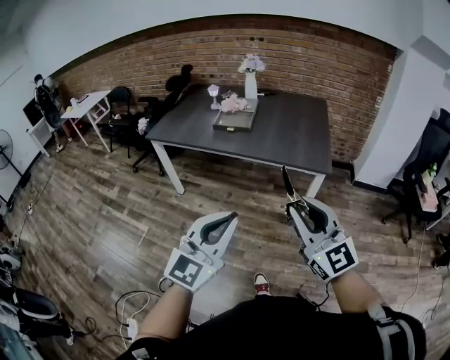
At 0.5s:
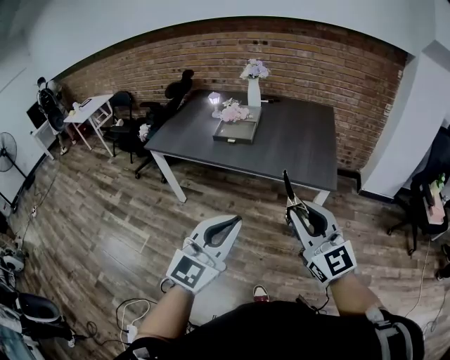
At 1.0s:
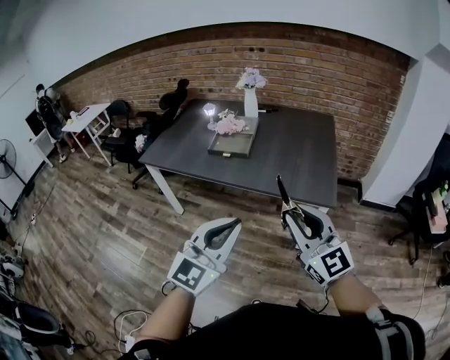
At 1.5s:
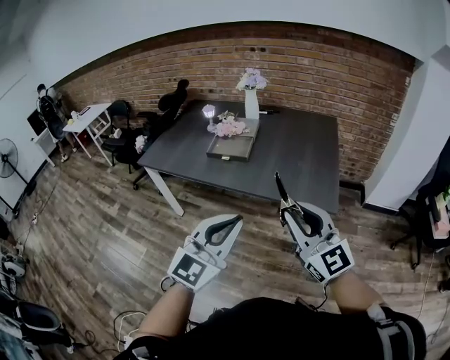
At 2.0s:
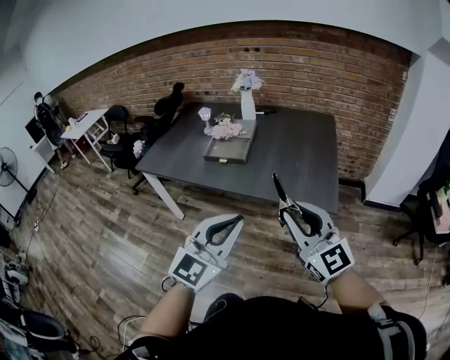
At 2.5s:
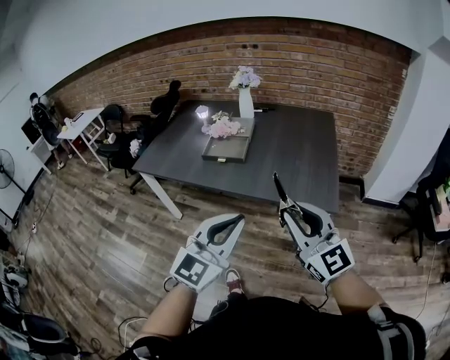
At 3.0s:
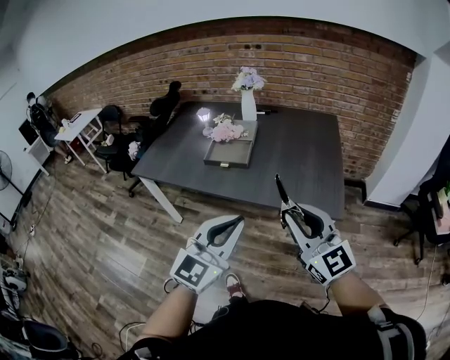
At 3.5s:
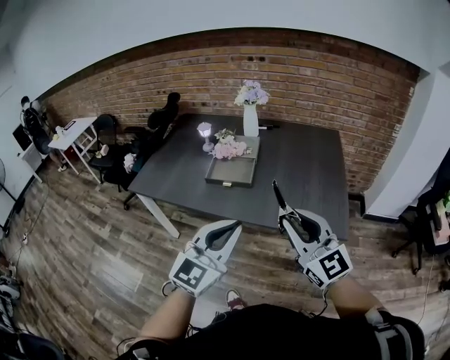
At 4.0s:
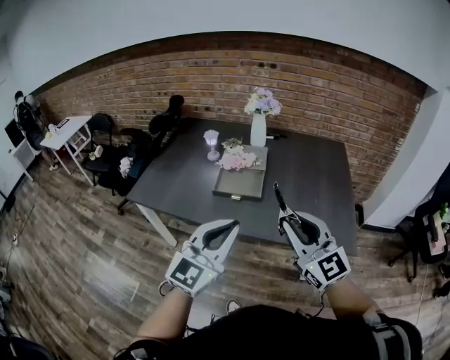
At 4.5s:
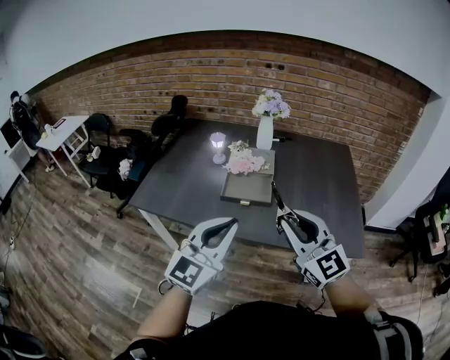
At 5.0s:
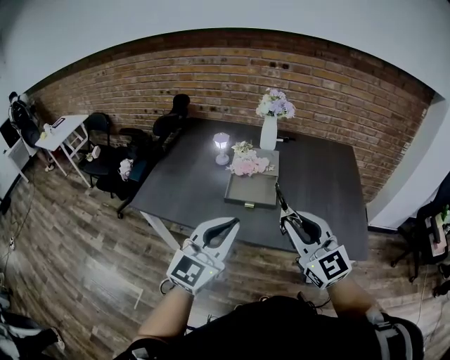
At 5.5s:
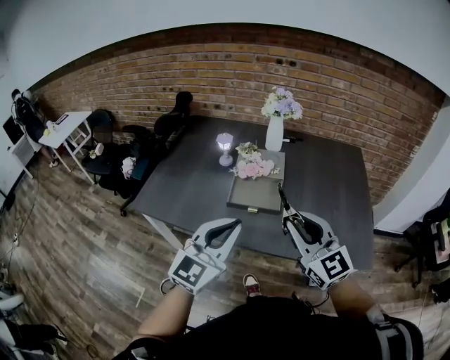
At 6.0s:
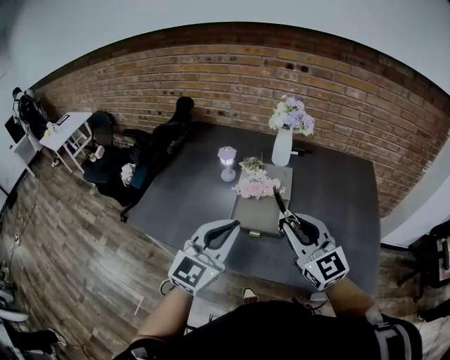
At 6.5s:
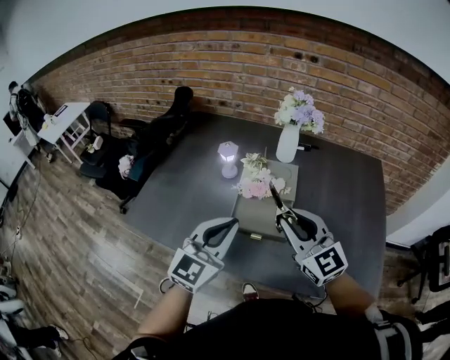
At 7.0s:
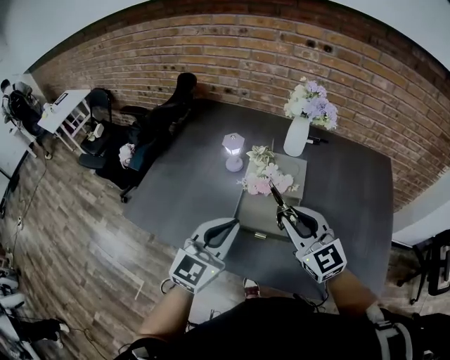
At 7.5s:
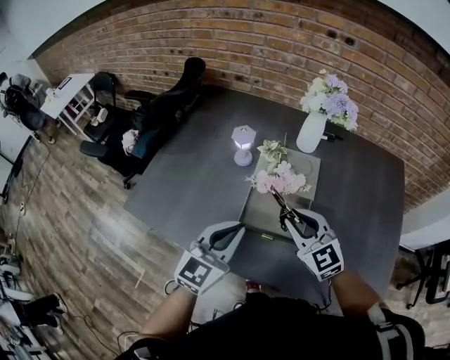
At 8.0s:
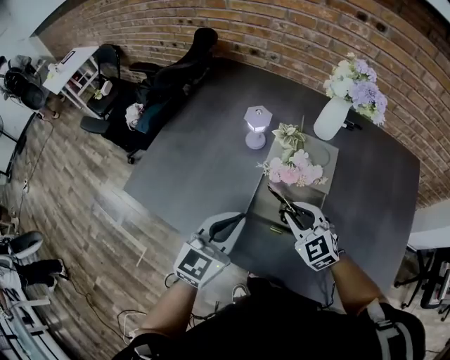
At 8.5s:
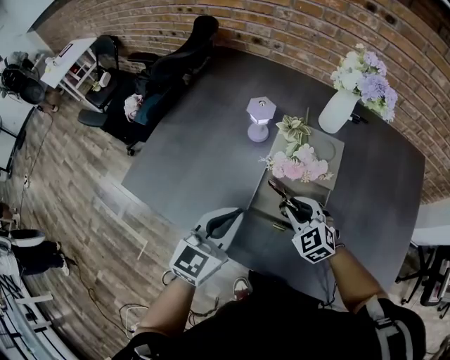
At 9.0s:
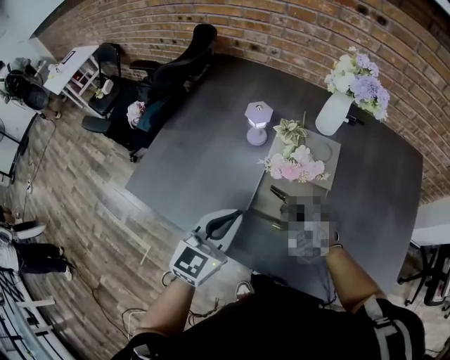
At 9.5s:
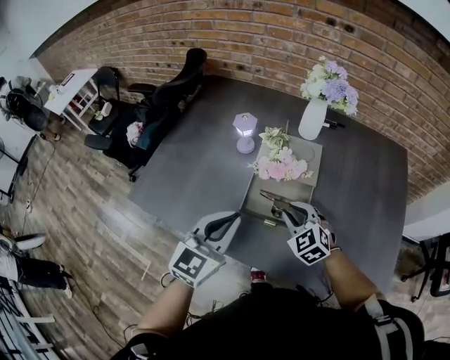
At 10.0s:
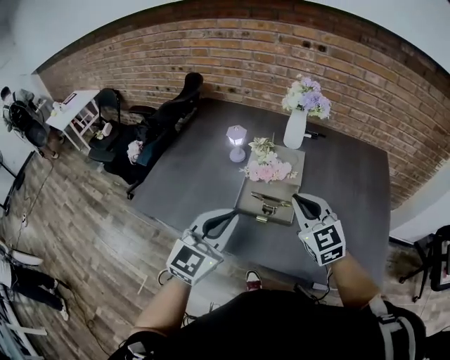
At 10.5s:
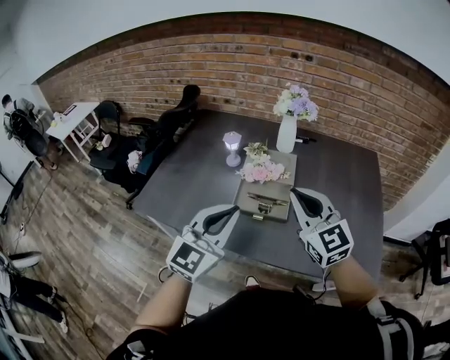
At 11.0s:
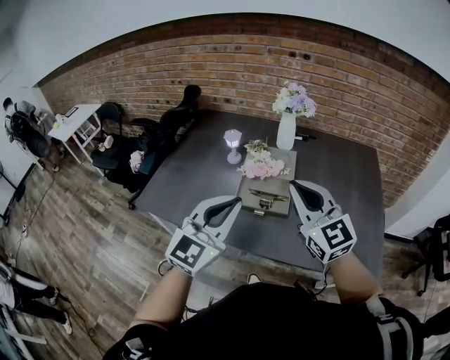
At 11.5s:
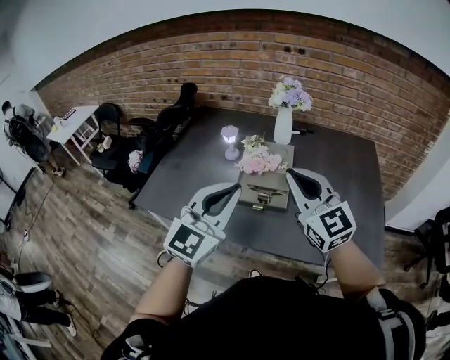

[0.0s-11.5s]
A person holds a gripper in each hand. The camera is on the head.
0.0s to 2.0s: The two grippers go roughly 25 cm forward.
2.0s to 4.0s: The two grippers go roughly 25 cm forward and to the left.
4.0s to 6.0s: Both grippers move forward, some 20 cm.
6.0s to 7.5s: Both grippers travel together downward and forward, approximately 15 cm.
7.5s to 9.5s: The right gripper travels downward by about 10 cm, and turns by roughly 20 degrees.
9.5s to 11.5s: The right gripper travels upward and backward by approximately 30 cm, and tips its fingers upward by about 40 degrees, while the left gripper shifts about 20 cm upward and backward, and rotates approximately 20 degrees.

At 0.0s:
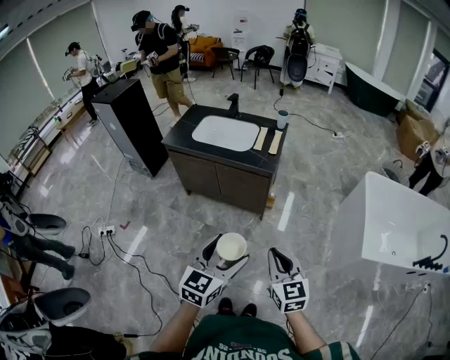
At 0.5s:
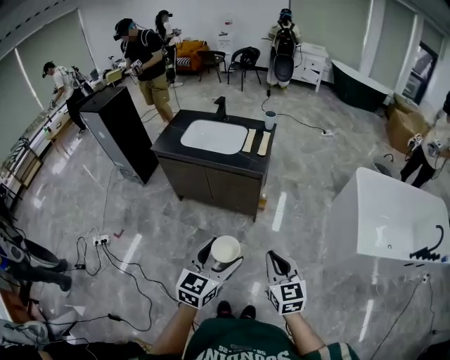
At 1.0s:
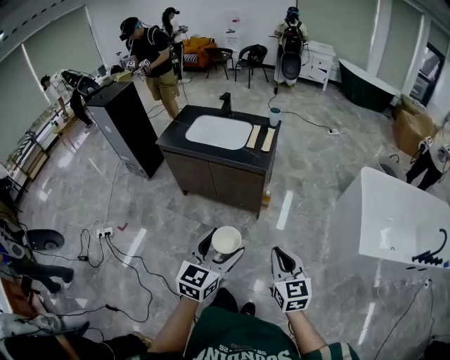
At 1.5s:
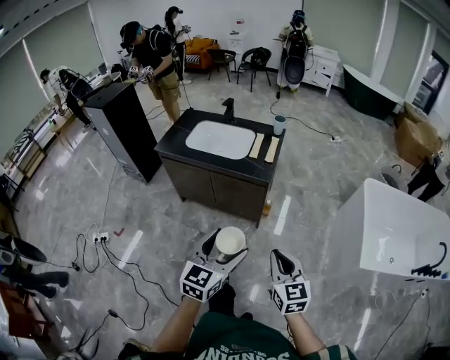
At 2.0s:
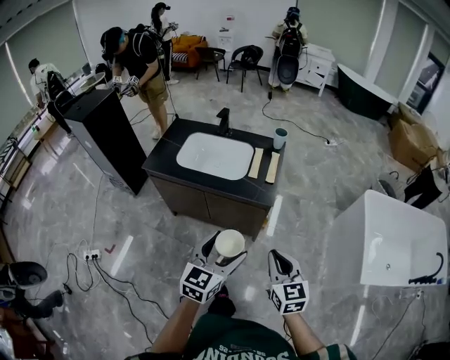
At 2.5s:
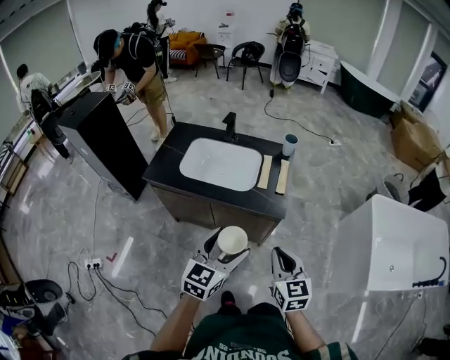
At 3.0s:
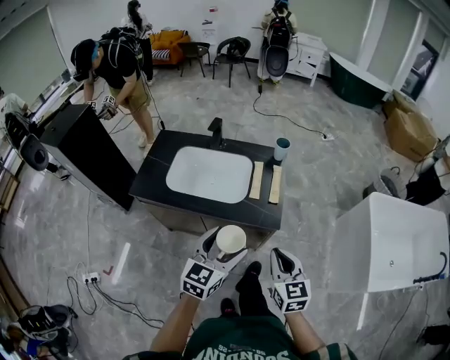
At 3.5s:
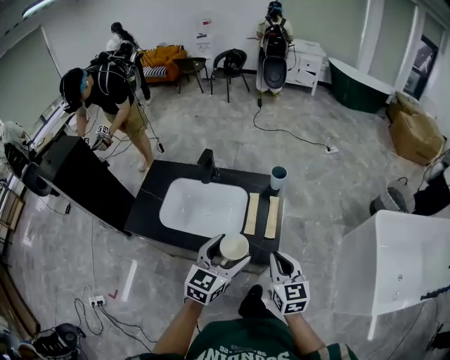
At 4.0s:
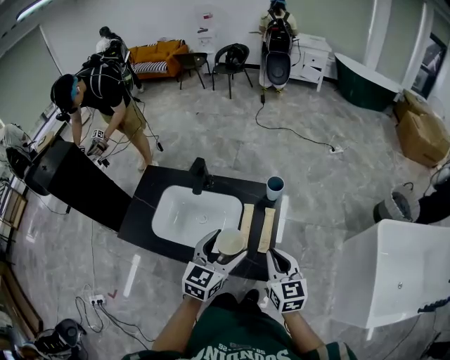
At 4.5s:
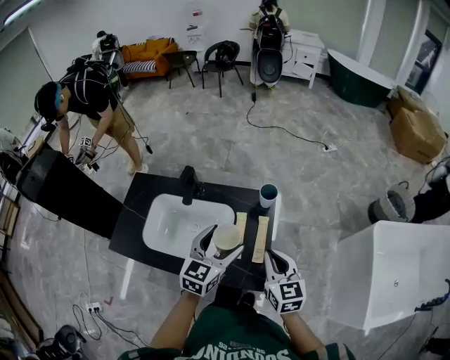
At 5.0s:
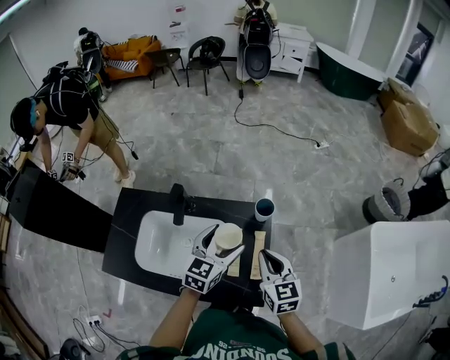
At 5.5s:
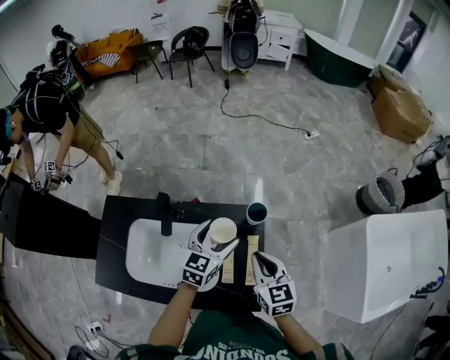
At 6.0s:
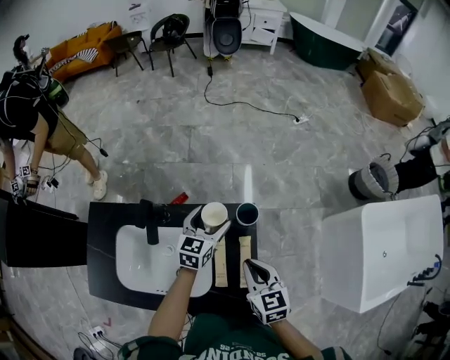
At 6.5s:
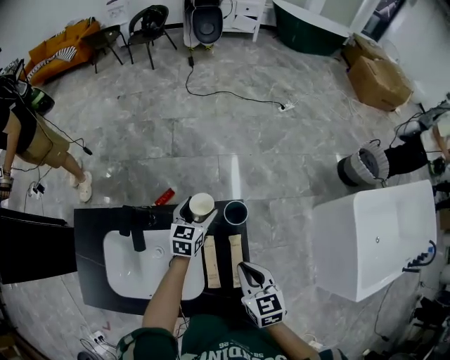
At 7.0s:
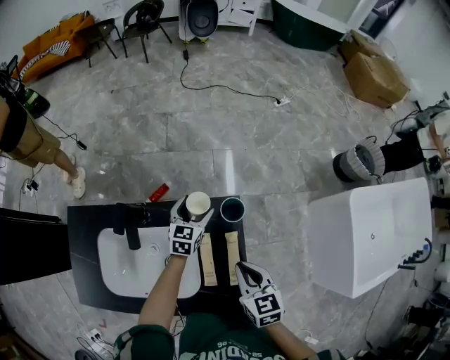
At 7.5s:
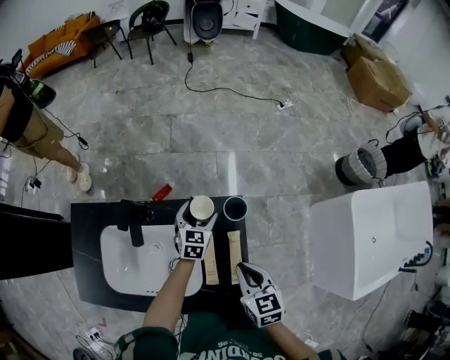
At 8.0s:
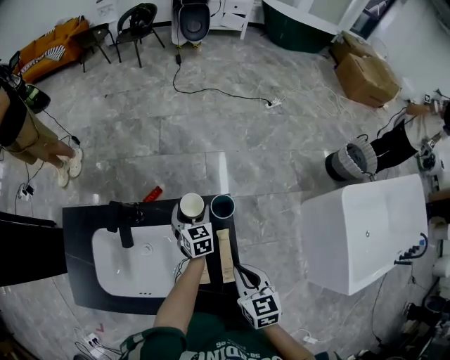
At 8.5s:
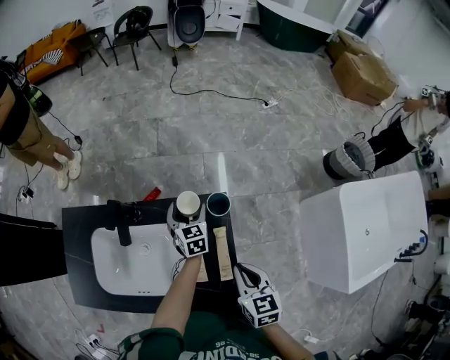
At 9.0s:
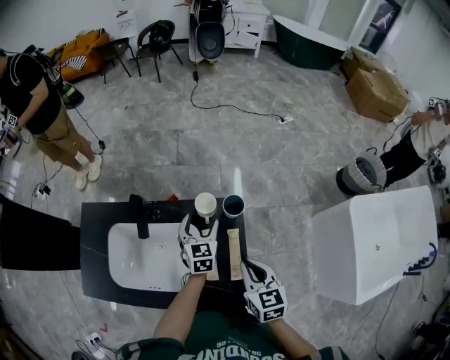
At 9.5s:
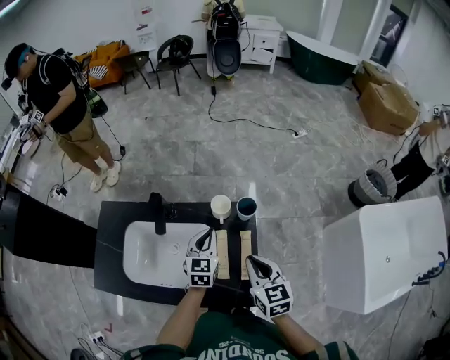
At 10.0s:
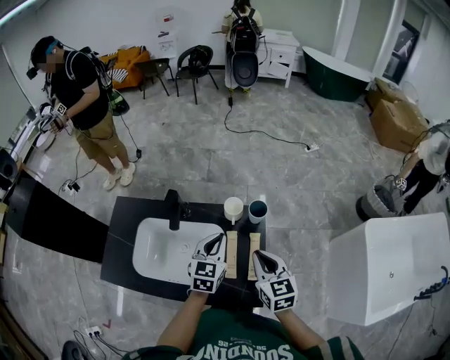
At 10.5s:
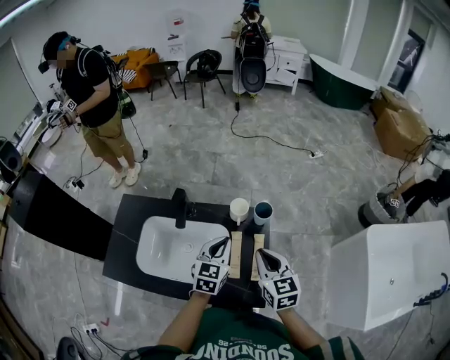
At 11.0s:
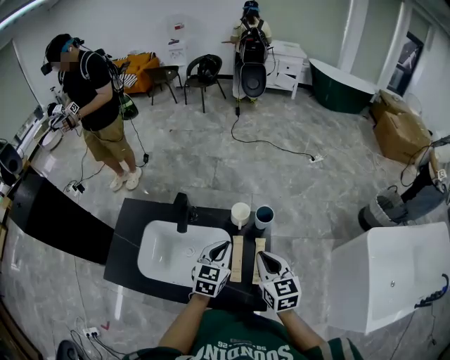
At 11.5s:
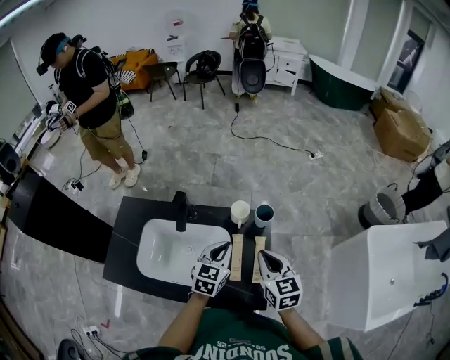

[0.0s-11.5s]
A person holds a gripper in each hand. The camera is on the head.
0.0s to 2.0s: Both grippers move forward, about 25 cm.
2.0s to 4.0s: Both grippers are carried forward, some 50 cm.
4.0s to 6.0s: The left gripper travels forward and downward by some 40 cm. The right gripper goes approximately 20 cm forward and downward.
6.0s to 7.5s: The left gripper travels downward by roughly 10 cm.
7.5s to 9.5s: The right gripper heads upward, covering some 5 cm; the left gripper goes some 20 cm upward and backward, and closes.
9.5s to 11.5s: The left gripper heads backward, covering some 5 cm.

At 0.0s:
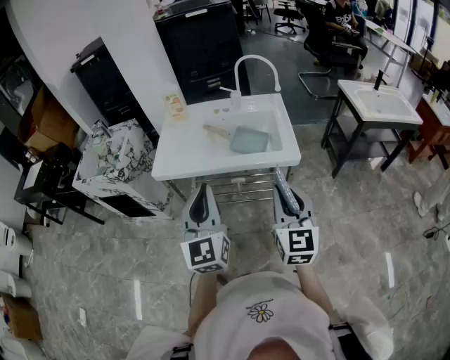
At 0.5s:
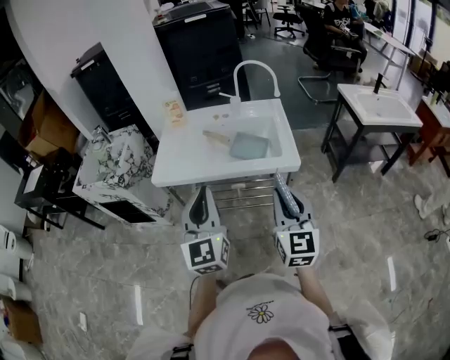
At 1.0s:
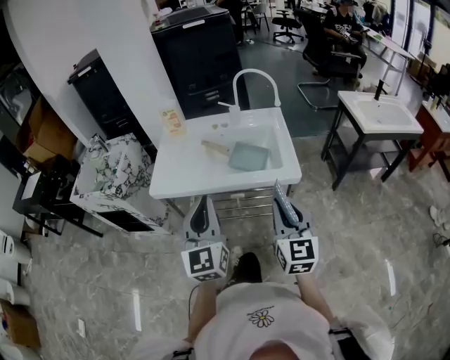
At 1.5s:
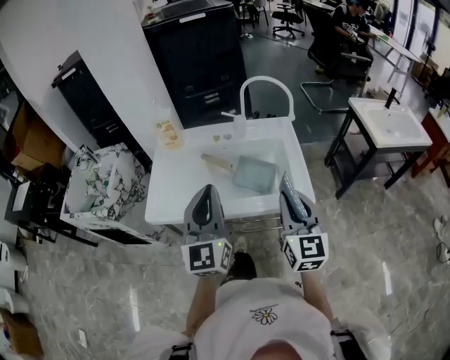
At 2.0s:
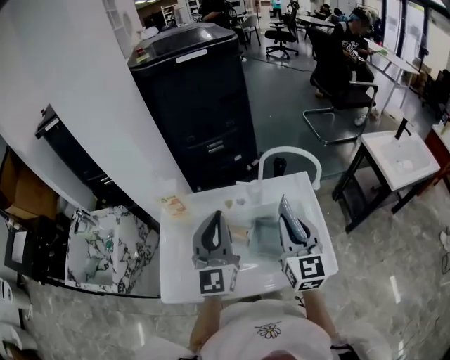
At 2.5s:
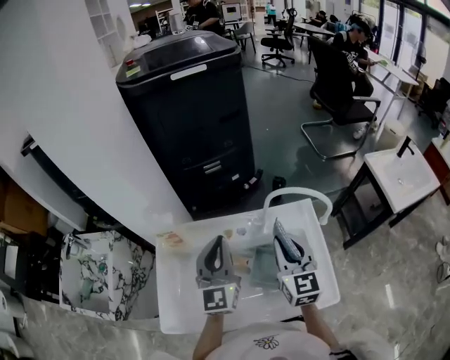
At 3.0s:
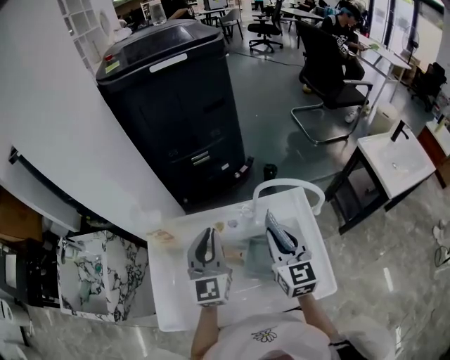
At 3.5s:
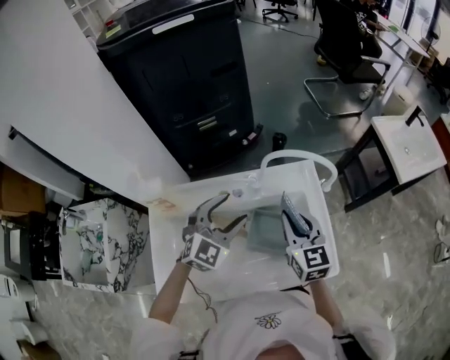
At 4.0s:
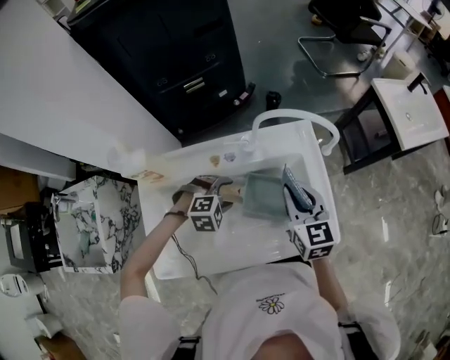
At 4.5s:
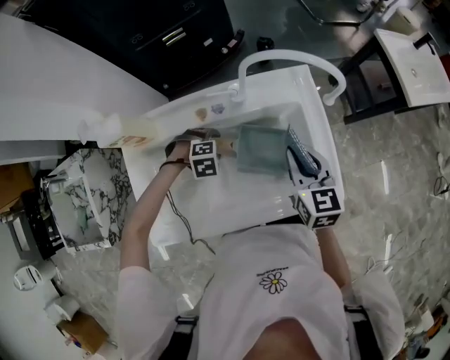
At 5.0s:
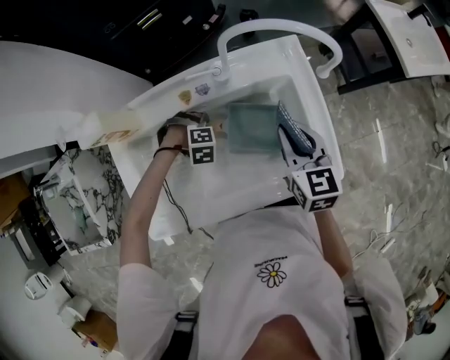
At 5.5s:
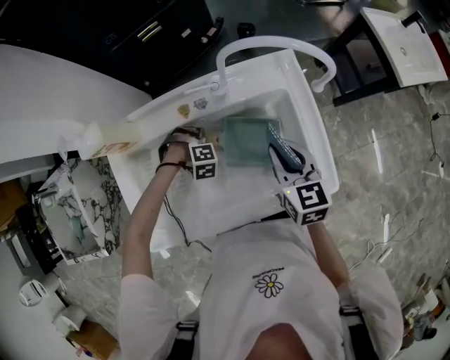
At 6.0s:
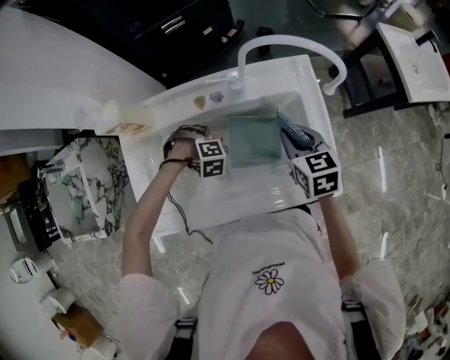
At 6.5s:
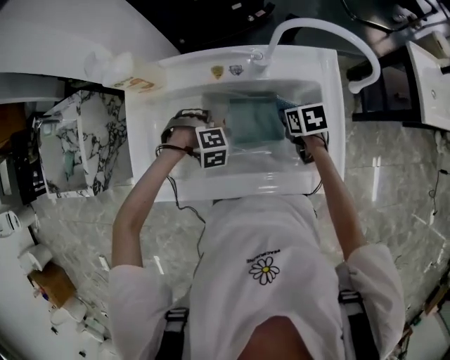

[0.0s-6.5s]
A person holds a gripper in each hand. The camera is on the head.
0.0s to 2.0s: The right gripper moves about 40 cm.
2.0s to 4.5s: The right gripper shifts approximately 15 cm downward, and changes its angle by roughly 30 degrees.
4.5s to 6.5s: The right gripper heads downward, covering about 15 cm, and tilts its fingers about 40 degrees downward.
